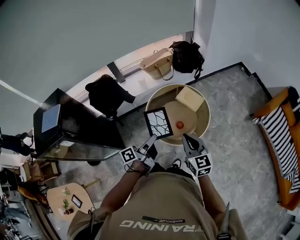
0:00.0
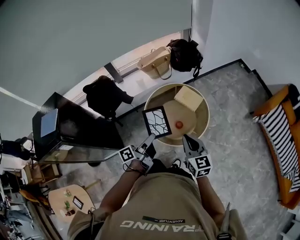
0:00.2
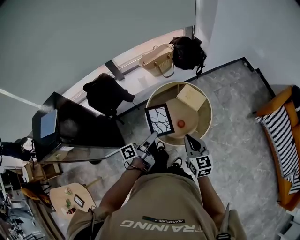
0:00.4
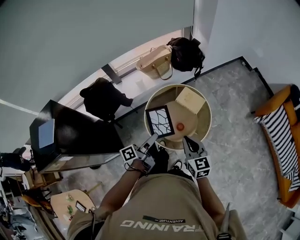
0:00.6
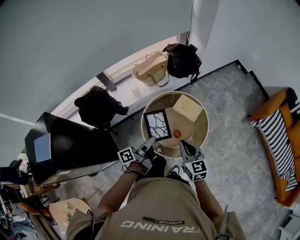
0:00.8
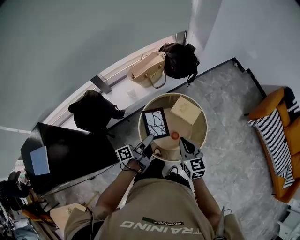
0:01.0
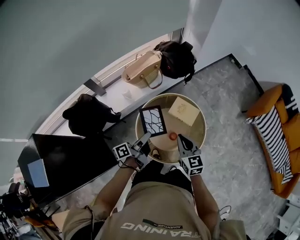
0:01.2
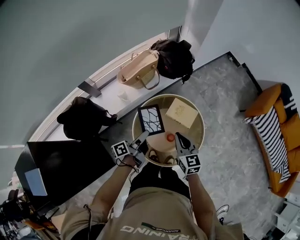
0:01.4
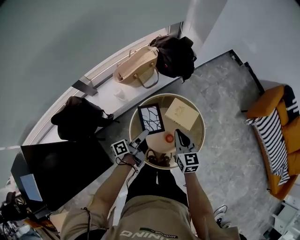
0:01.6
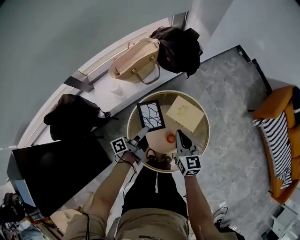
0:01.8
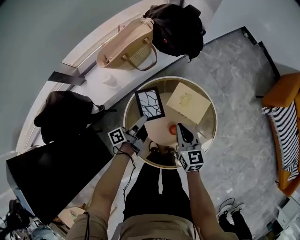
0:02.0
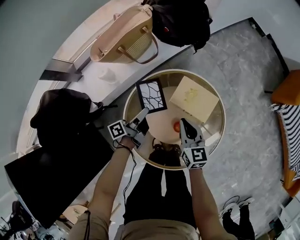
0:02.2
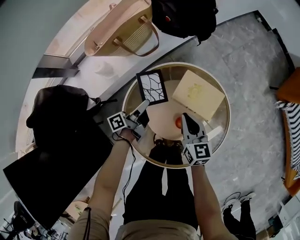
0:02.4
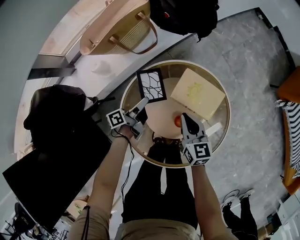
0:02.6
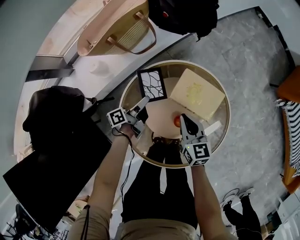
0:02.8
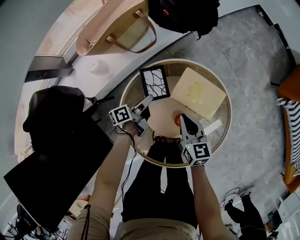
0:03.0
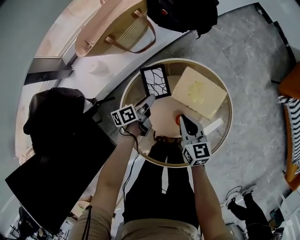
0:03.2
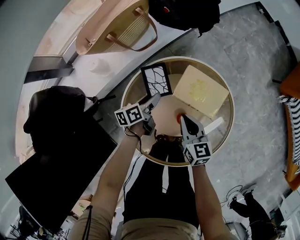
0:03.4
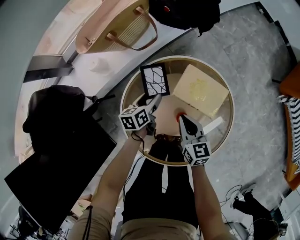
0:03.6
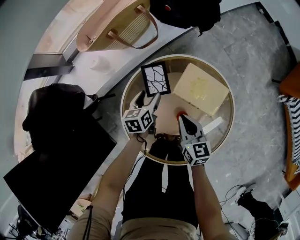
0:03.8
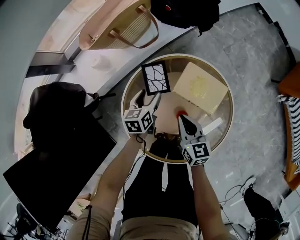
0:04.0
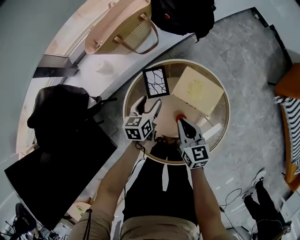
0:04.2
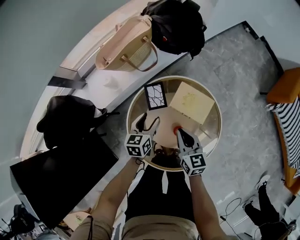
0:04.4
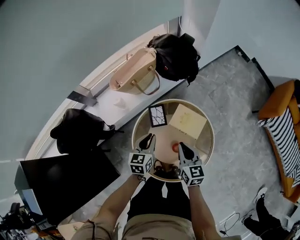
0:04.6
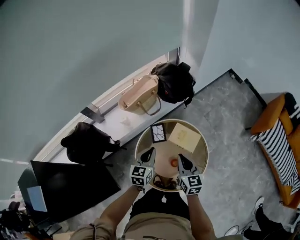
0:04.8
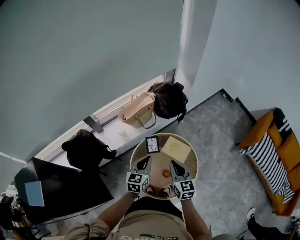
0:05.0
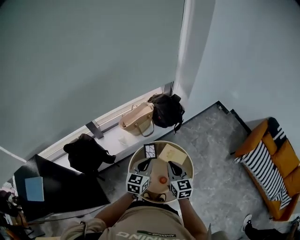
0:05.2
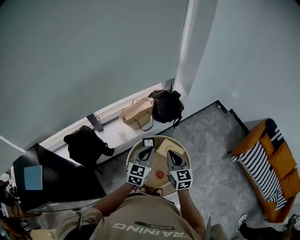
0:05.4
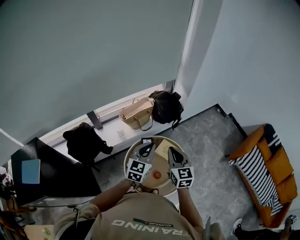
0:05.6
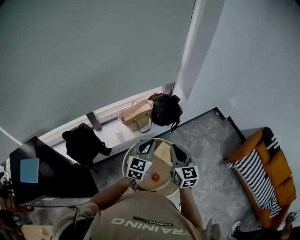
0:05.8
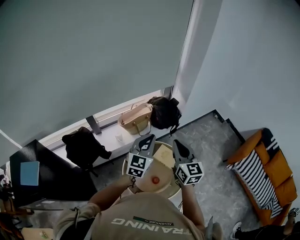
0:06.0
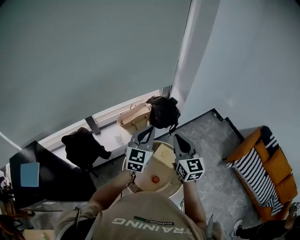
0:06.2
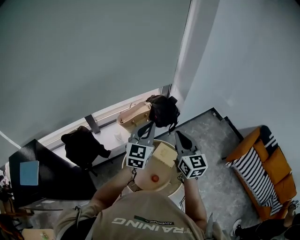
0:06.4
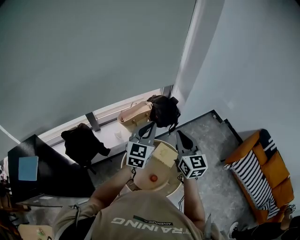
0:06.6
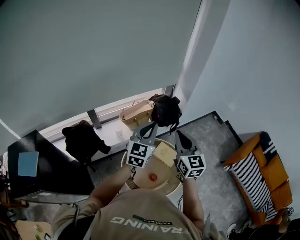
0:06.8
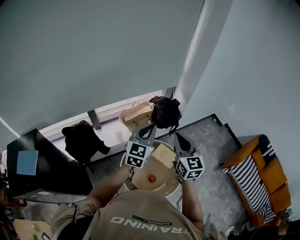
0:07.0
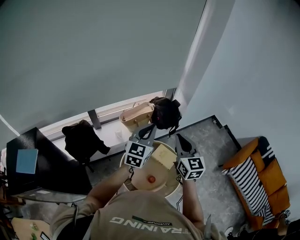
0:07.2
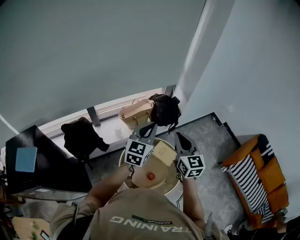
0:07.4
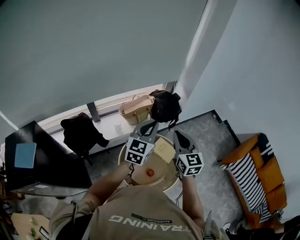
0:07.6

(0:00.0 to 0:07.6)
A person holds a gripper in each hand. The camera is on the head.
0:00.0 - 0:01.6: Both grippers travel together forward and downward, about 35 cm.
0:01.6 - 0:03.0: Both grippers move downward, some 30 cm.
0:03.0 - 0:04.6: Both grippers move upward, some 20 cm. The left gripper rolls clockwise, seen from behind, by approximately 60 degrees, and opens, then closes once more.
0:04.6 - 0:06.0: The two grippers go roughly 40 cm upward. The left gripper swivels about 40 degrees, while the right gripper turns by some 30 degrees.

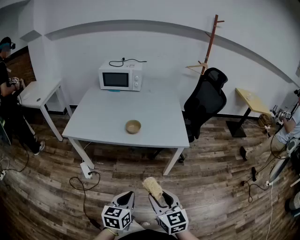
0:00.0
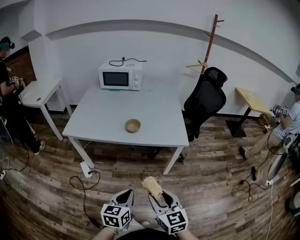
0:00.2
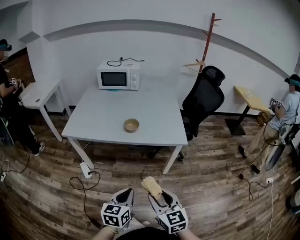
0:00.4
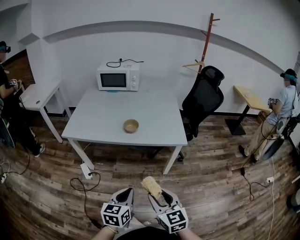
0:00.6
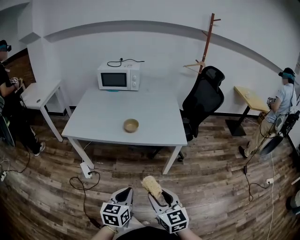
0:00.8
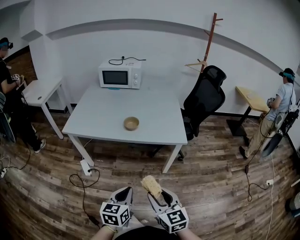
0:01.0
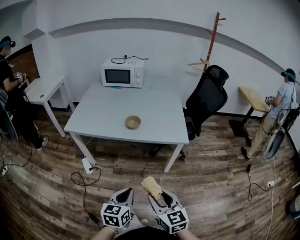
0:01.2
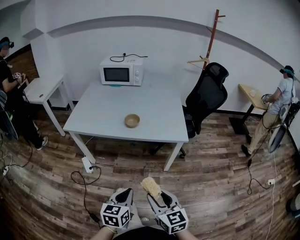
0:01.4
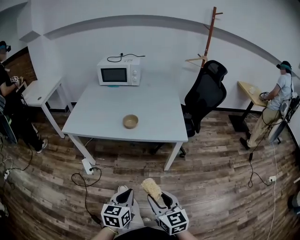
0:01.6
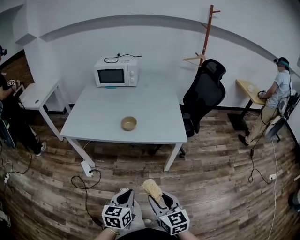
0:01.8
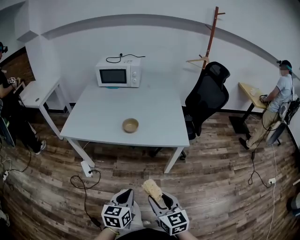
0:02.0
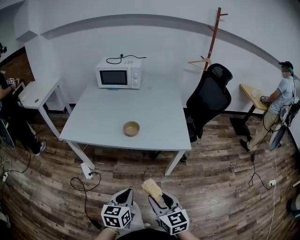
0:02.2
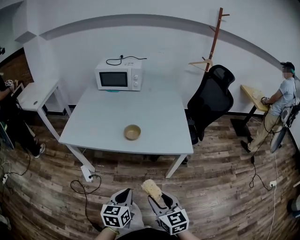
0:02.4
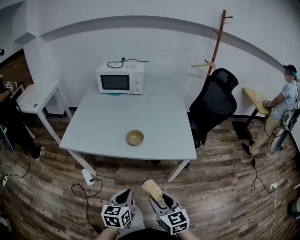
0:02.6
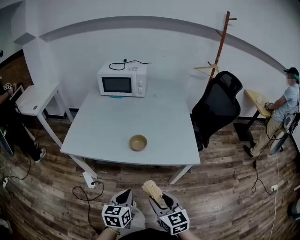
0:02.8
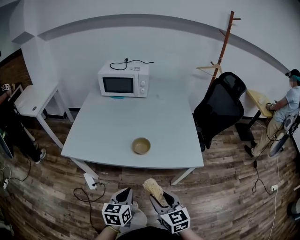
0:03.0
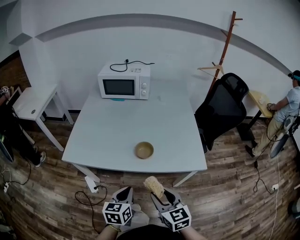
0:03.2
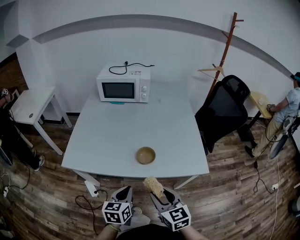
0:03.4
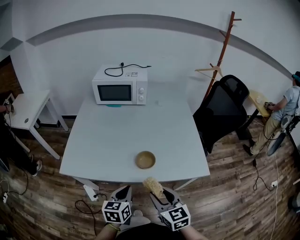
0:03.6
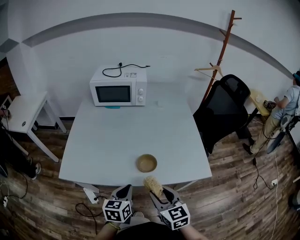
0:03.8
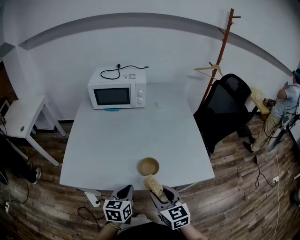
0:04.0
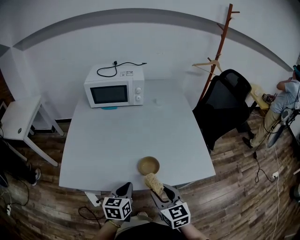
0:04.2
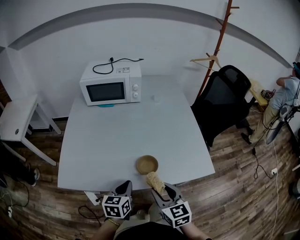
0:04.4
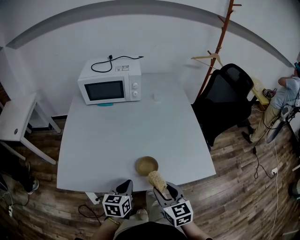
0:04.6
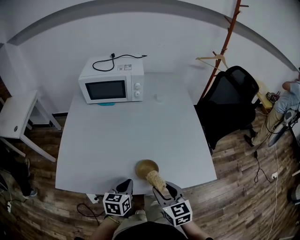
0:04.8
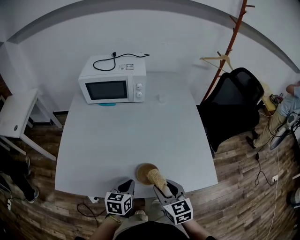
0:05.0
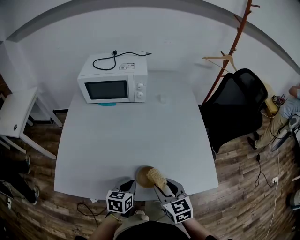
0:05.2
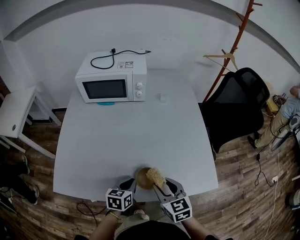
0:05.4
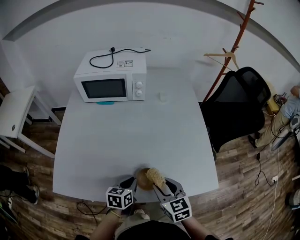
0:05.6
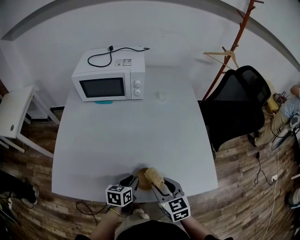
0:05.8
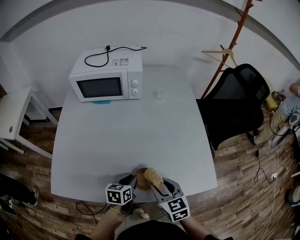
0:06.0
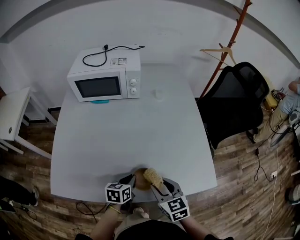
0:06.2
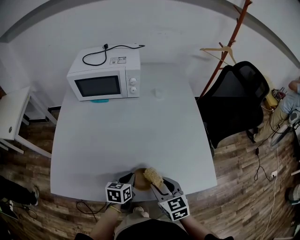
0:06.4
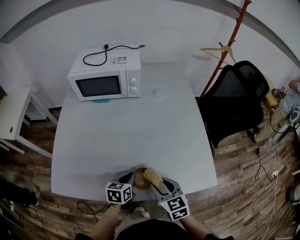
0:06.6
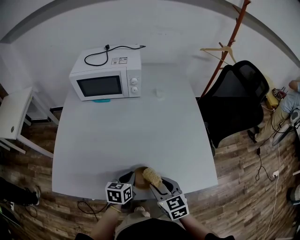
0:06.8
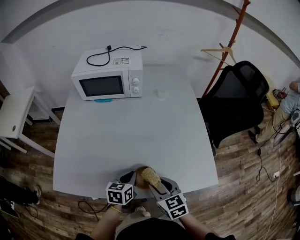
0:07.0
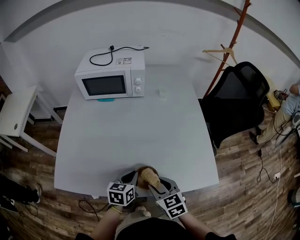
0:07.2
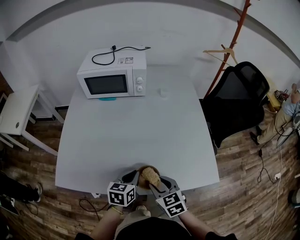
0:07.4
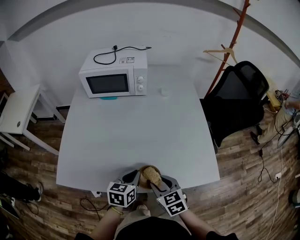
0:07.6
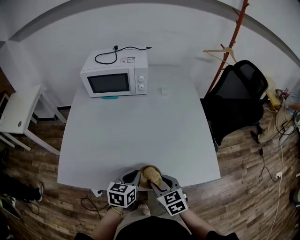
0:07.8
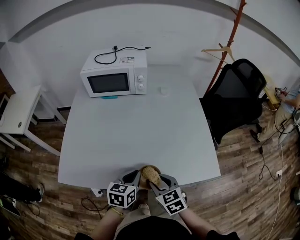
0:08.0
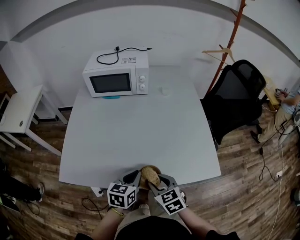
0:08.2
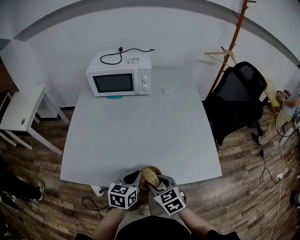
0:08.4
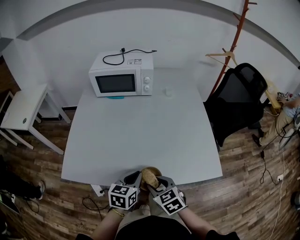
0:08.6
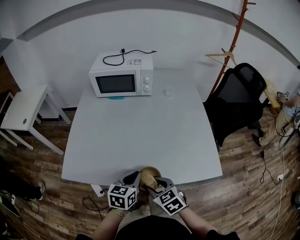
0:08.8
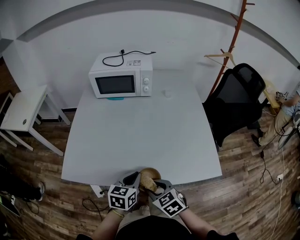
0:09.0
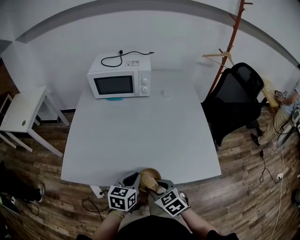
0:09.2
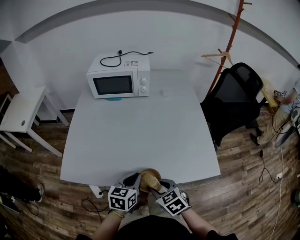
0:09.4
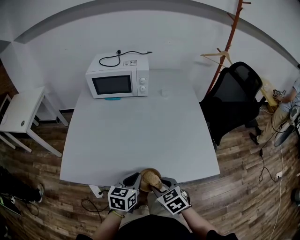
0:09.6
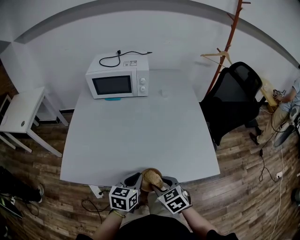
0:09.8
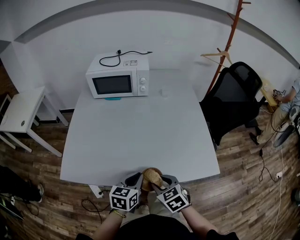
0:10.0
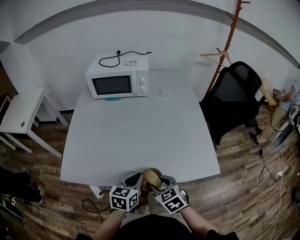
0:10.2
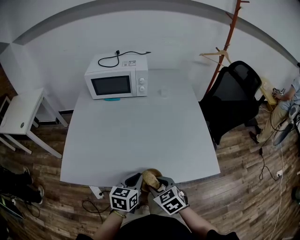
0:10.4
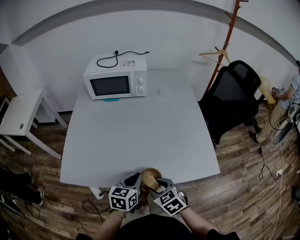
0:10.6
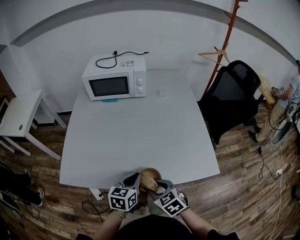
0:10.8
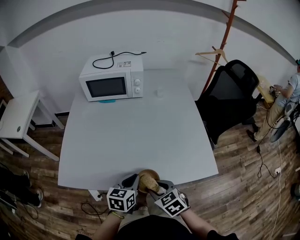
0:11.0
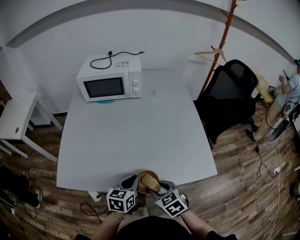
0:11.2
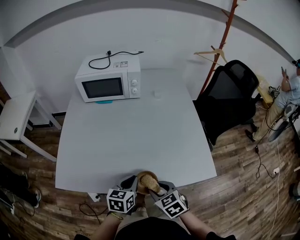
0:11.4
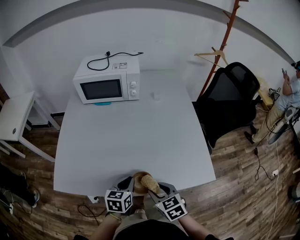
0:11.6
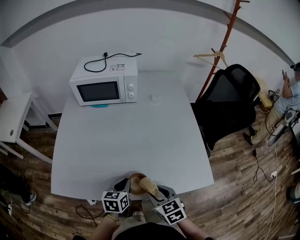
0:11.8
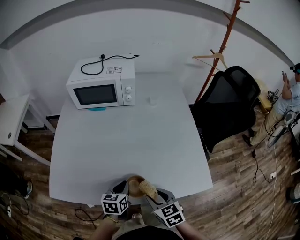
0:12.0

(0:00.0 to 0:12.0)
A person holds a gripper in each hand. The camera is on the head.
0:00.0 - 0:01.6: The grippers move only a little.
0:01.6 - 0:03.0: The two grippers go approximately 20 cm forward.
0:03.0 - 0:04.4: The grippers both shift forward by about 20 cm.
0:04.4 - 0:06.0: The right gripper goes roughly 10 cm forward, while the left gripper heads forward and downward, covering about 15 cm.
0:06.0 - 0:07.6: The left gripper goes some 5 cm upward. Meanwhile the right gripper shifts by some 5 cm.
0:07.6 - 0:09.0: The left gripper changes place by roughly 5 cm. The right gripper shifts approximately 10 cm backward and to the left.
0:09.0 - 0:10.4: The grippers stay close to where they were, moving slightly.
0:10.4 - 0:12.0: The left gripper moves forward and downward, roughly 10 cm. The right gripper is displaced to the right by some 5 cm.

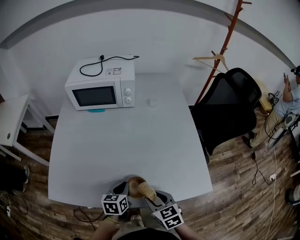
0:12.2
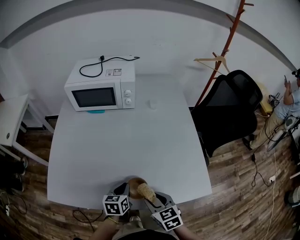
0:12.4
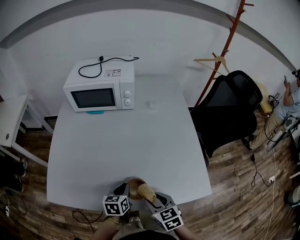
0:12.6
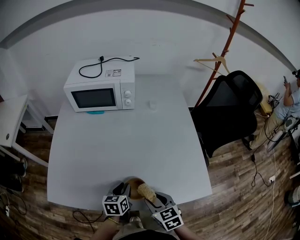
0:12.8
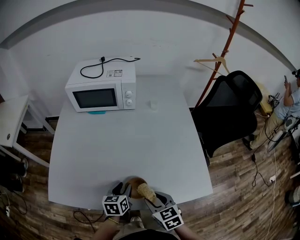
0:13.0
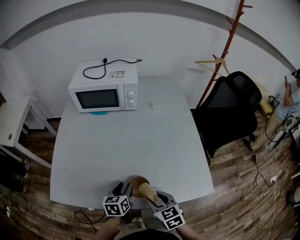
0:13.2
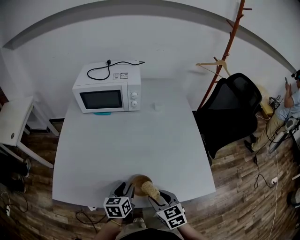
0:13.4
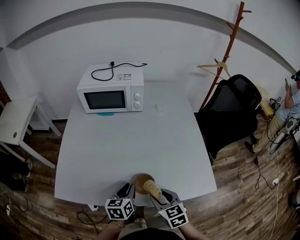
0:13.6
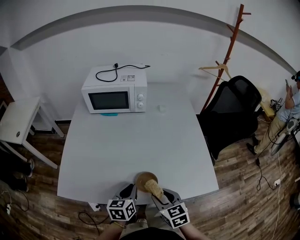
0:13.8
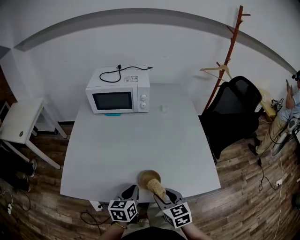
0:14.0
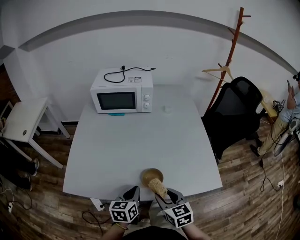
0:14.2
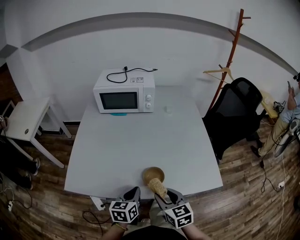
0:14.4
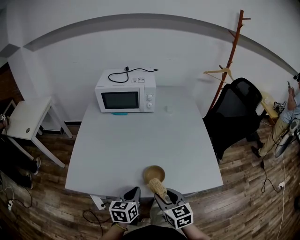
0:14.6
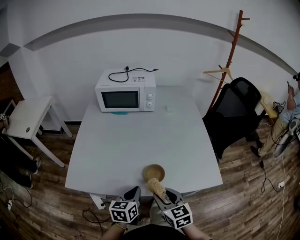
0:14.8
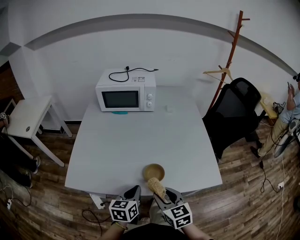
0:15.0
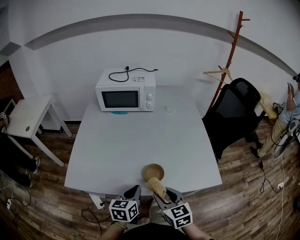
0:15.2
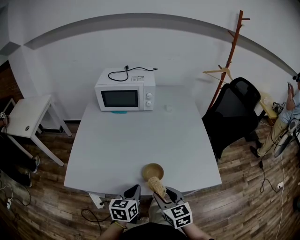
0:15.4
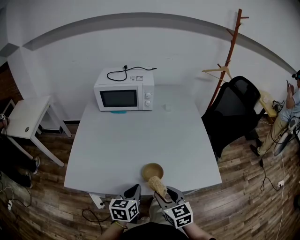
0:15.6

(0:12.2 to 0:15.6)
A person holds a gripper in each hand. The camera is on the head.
0:12.2 - 0:13.8: The left gripper shifts approximately 5 cm upward, and opens, then closes again.
0:13.8 - 0:15.6: The right gripper ends up about 5 cm from where it was. The left gripper heads backward, covering some 5 cm.

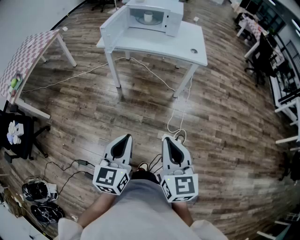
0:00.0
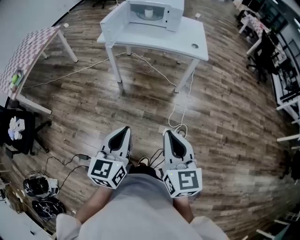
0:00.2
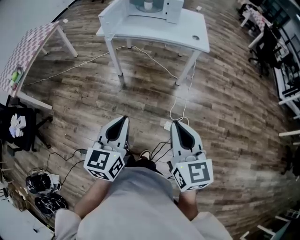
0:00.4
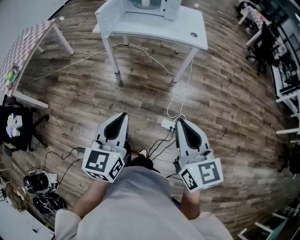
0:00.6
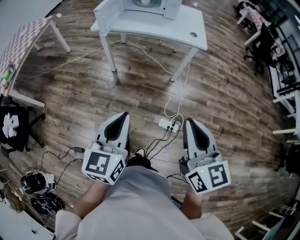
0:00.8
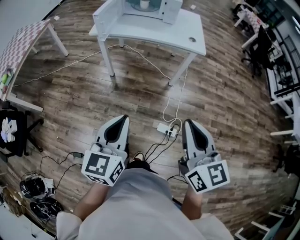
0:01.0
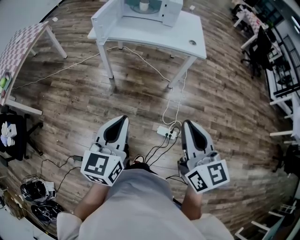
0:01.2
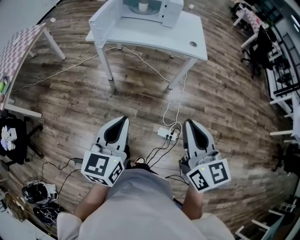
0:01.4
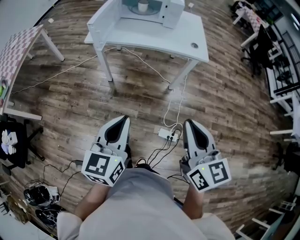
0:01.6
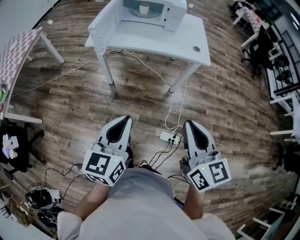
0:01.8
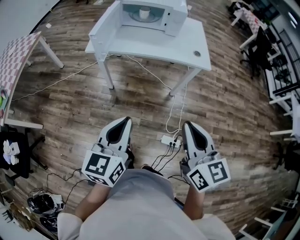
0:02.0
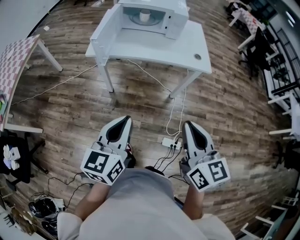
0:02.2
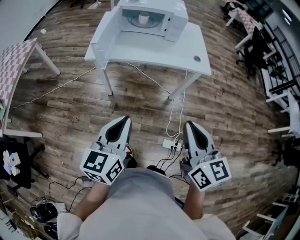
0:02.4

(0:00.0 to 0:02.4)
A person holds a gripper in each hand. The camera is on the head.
0:00.0 - 0:01.2: The right gripper shifts some 10 cm forward and upward, while the left gripper shifts roughly 10 cm forward.
0:01.2 - 0:02.4: The two grippers go roughly 20 cm forward and to the left.
